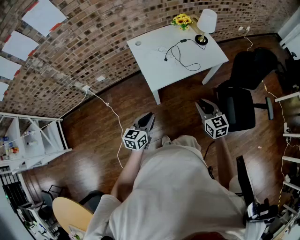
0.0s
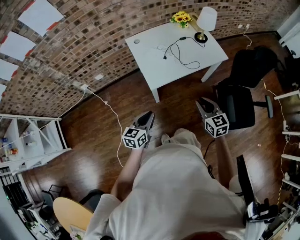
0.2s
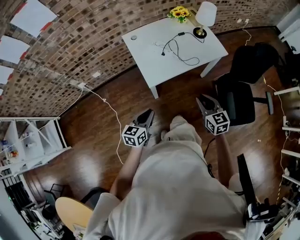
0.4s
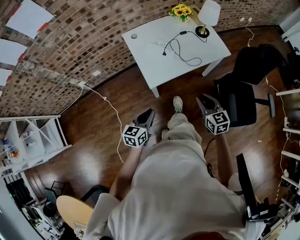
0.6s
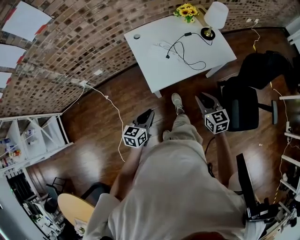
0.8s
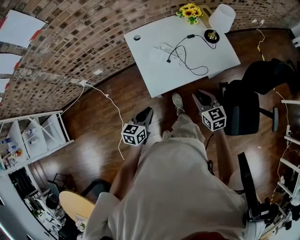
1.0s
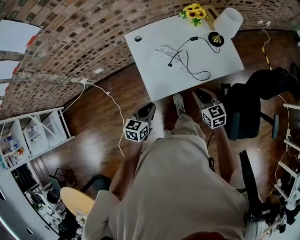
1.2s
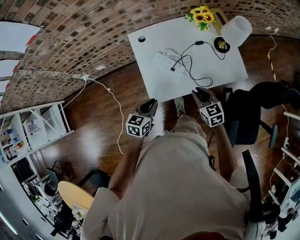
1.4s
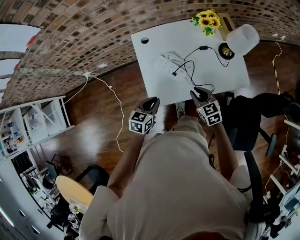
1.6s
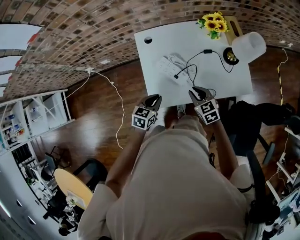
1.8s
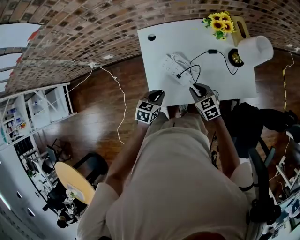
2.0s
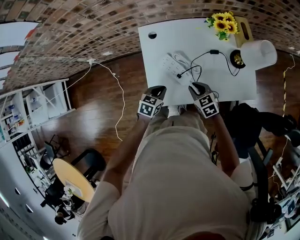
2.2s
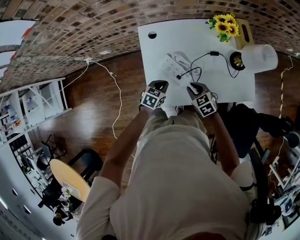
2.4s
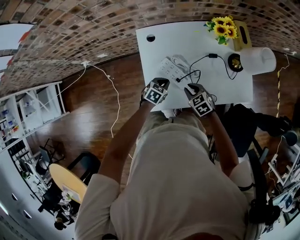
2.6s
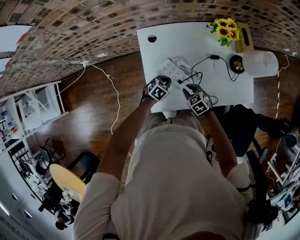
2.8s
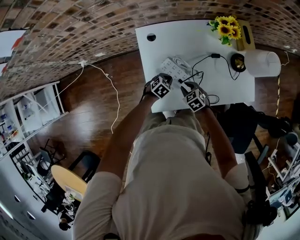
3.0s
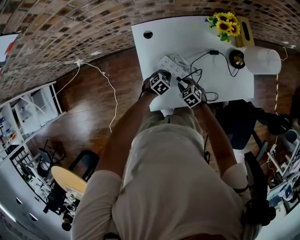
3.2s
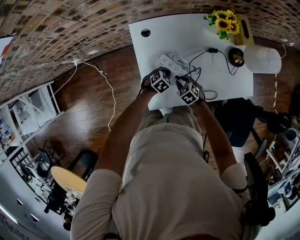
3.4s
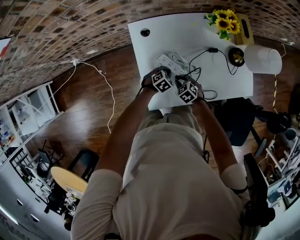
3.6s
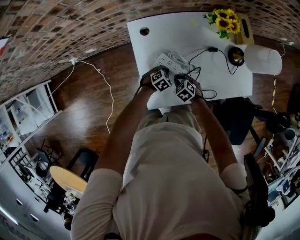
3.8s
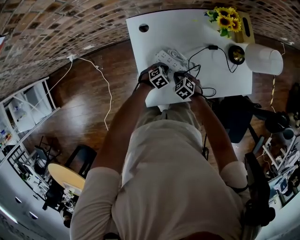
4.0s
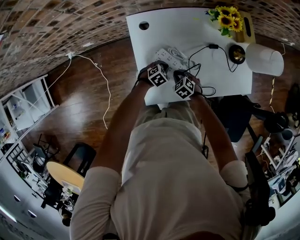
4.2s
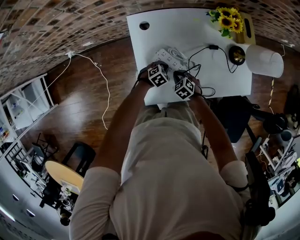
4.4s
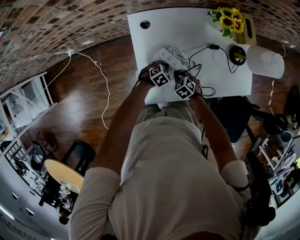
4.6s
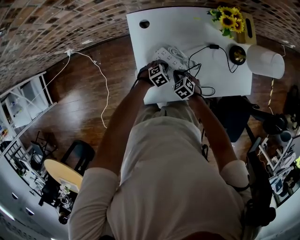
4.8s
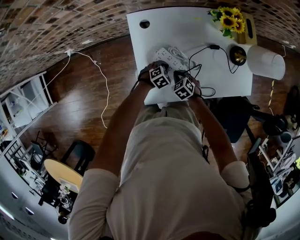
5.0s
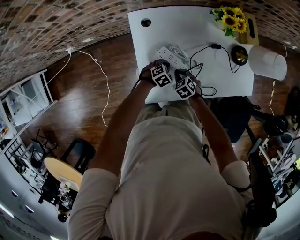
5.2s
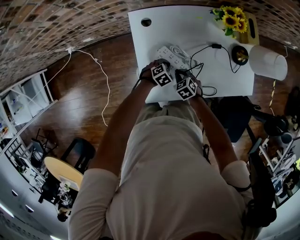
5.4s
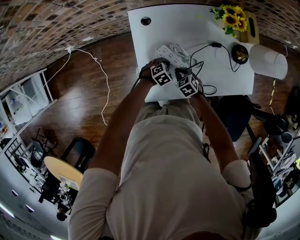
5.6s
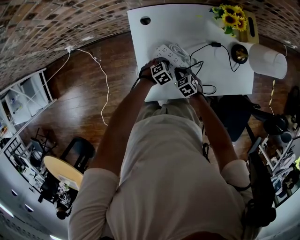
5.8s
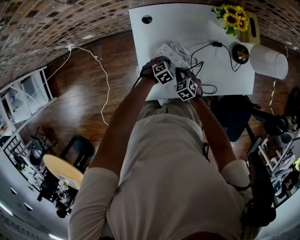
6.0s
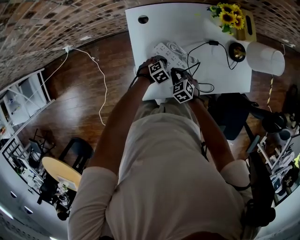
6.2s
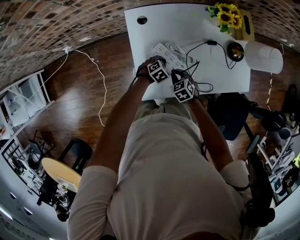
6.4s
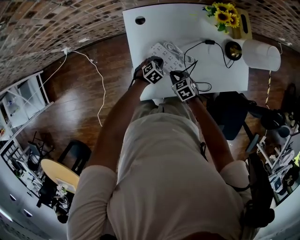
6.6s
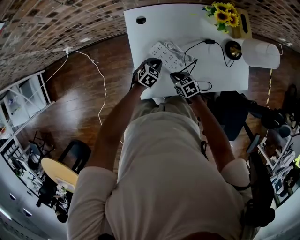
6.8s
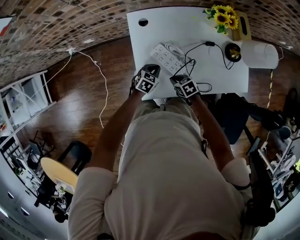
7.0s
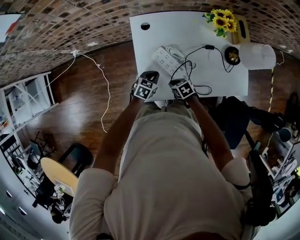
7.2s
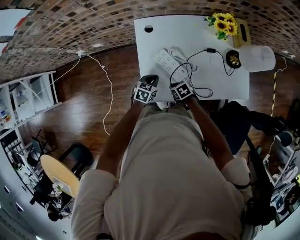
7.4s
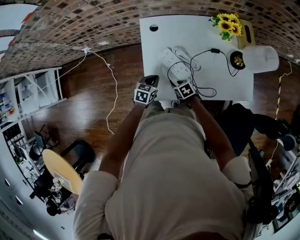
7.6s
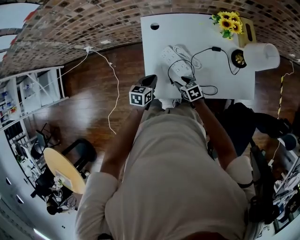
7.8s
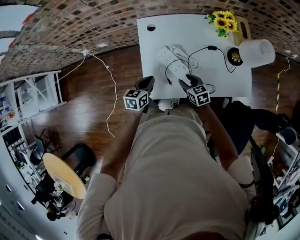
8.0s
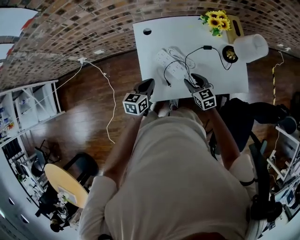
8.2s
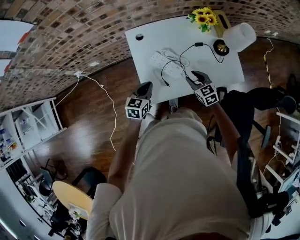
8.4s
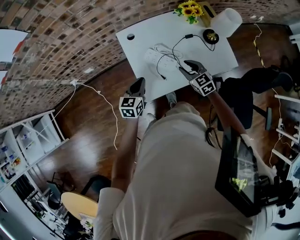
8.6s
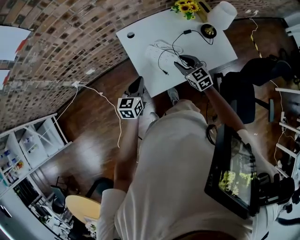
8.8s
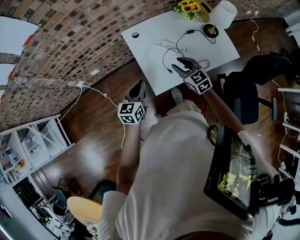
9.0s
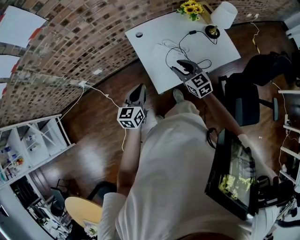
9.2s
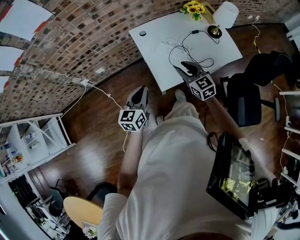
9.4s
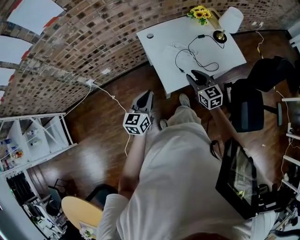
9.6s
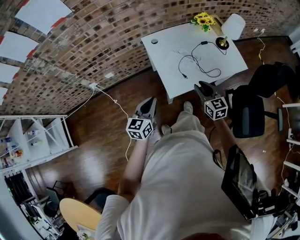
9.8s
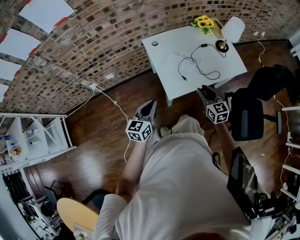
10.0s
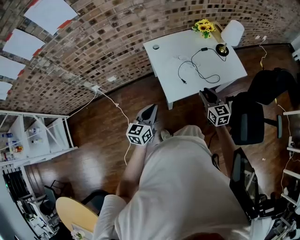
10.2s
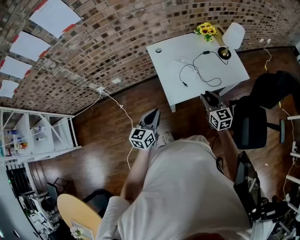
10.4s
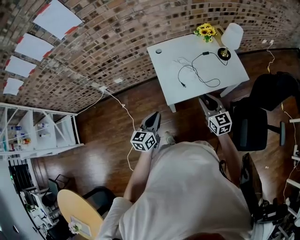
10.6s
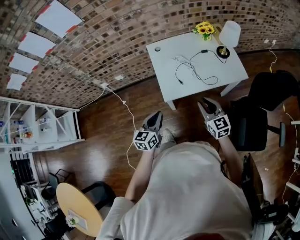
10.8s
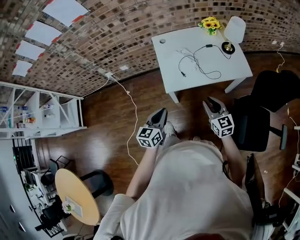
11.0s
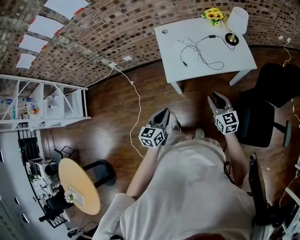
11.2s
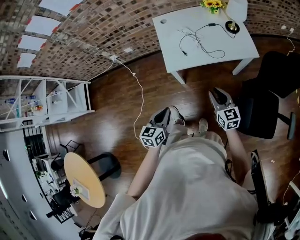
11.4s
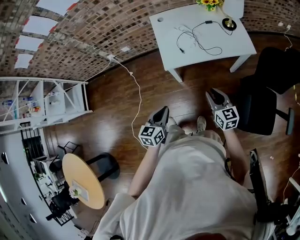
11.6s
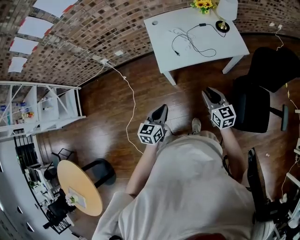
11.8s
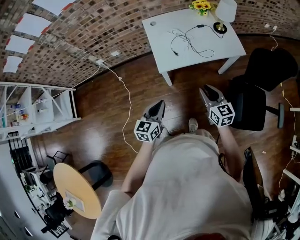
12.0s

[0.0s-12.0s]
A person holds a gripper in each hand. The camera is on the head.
0.0s to 1.6s: Both grippers move forward, about 35 cm. The right gripper turns by approximately 20 degrees.
1.6s to 3.0s: The right gripper heads downward, forward and to the left, covering approximately 20 cm, and turns by approximately 30 degrees. The left gripper shifts about 25 cm downward and forward, and rotates some 30 degrees.
3.0s to 4.4s: The left gripper changes place by approximately 5 cm, while the right gripper goes approximately 5 cm downward.
4.4s to 6.0s: The grippers move only a little.
6.0s to 7.6s: The left gripper travels upward by roughly 10 cm, and changes its angle by about 50 degrees; the right gripper moves some 10 cm, changes its angle by roughly 30 degrees, and opens.
7.6s to 9.0s: The grippers both shift upward by about 25 cm. The left gripper swivels approximately 30 degrees. Meanwhile the right gripper points its fingers roughly 30 degrees further upward.
9.0s to 10.4s: Both grippers move backward, some 15 cm.
10.4s to 12.0s: The right gripper moves backward, some 15 cm. Meanwhile the left gripper is displaced backward and to the right by approximately 20 cm.

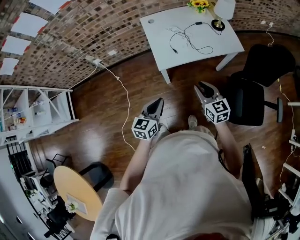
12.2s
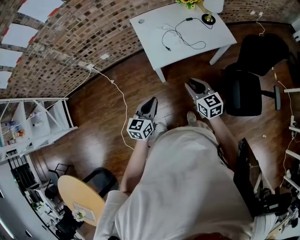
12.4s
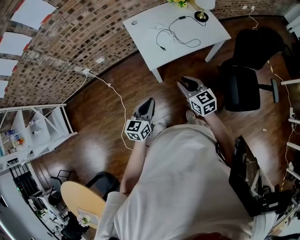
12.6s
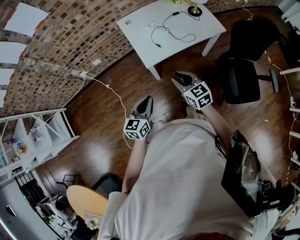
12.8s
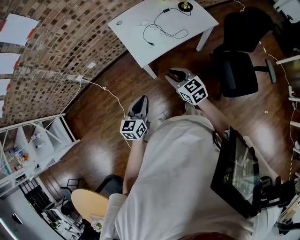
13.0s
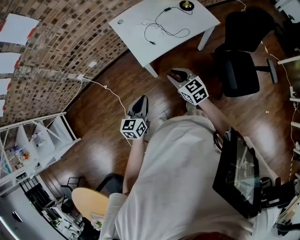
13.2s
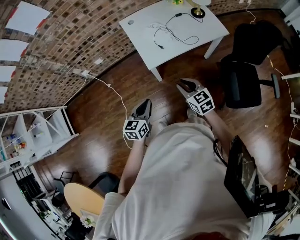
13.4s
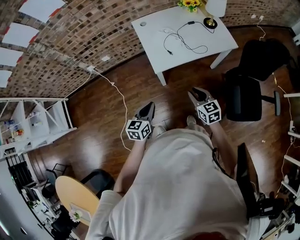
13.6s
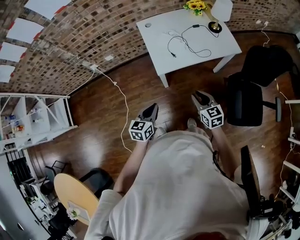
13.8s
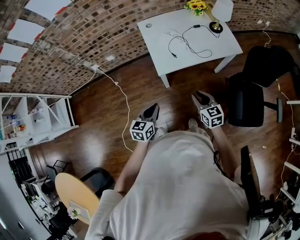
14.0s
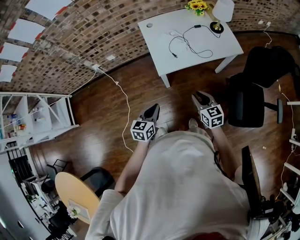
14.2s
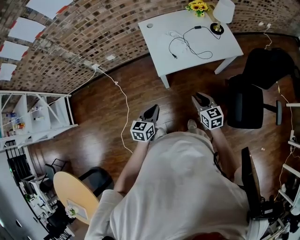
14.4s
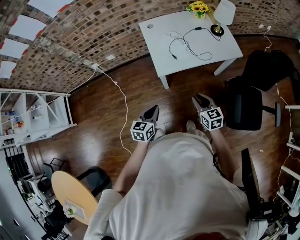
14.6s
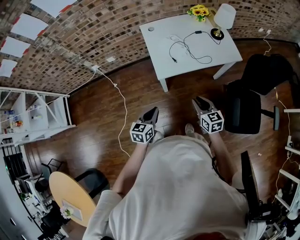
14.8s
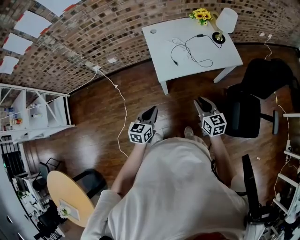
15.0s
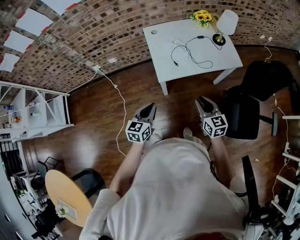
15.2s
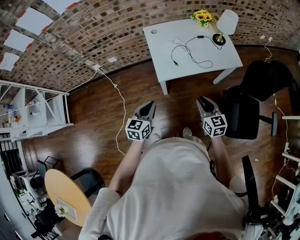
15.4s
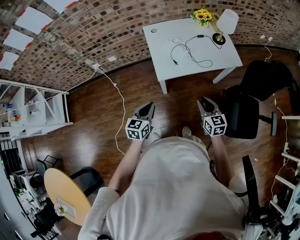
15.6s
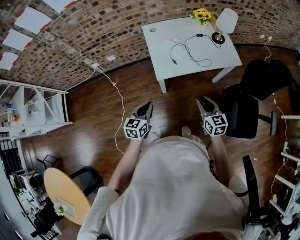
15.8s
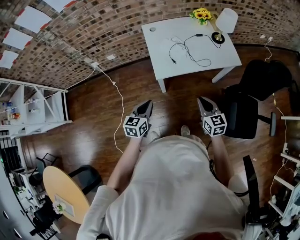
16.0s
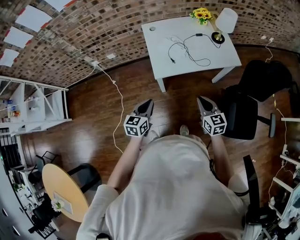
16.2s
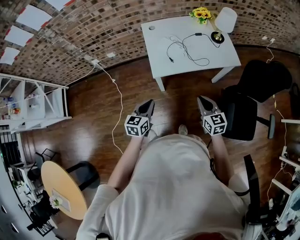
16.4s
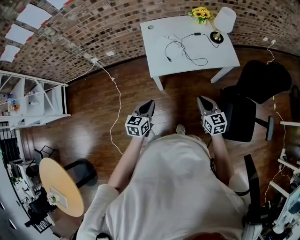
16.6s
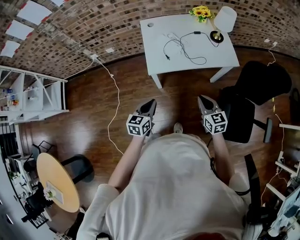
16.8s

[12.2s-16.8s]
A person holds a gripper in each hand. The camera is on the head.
12.2s to 13.8s: Both grippers move downward, roughly 5 cm.
13.8s to 15.2s: The left gripper ends up approximately 5 cm from where it was; the right gripper changes place by roughly 5 cm.
15.2s to 16.8s: Both grippers move to the right, approximately 10 cm.

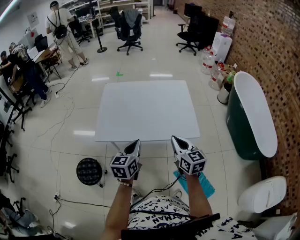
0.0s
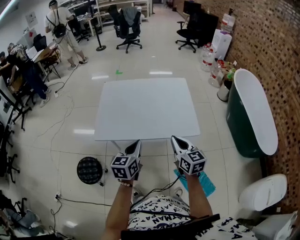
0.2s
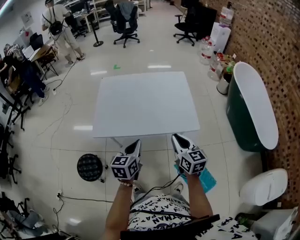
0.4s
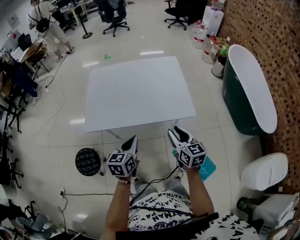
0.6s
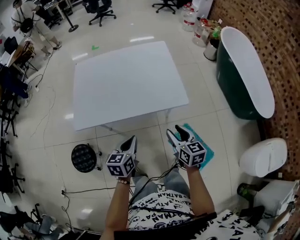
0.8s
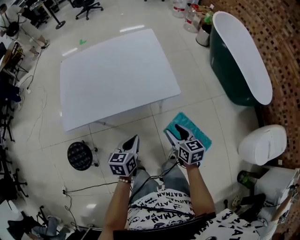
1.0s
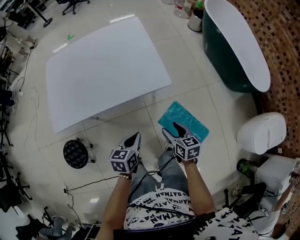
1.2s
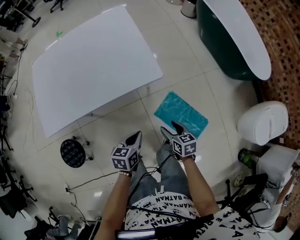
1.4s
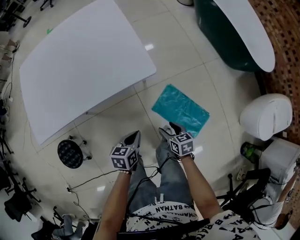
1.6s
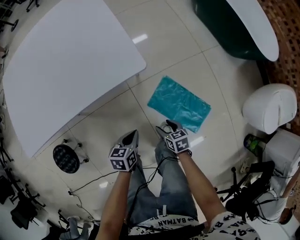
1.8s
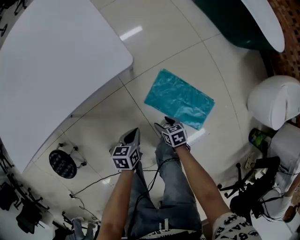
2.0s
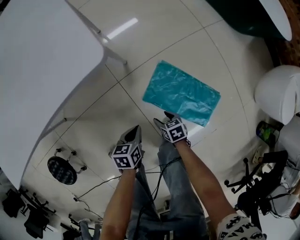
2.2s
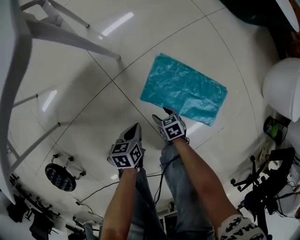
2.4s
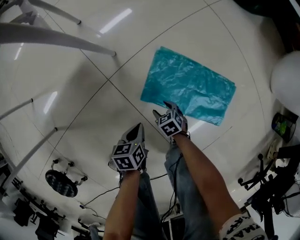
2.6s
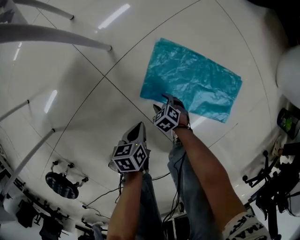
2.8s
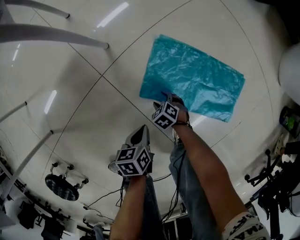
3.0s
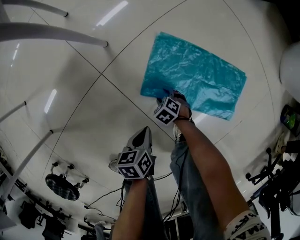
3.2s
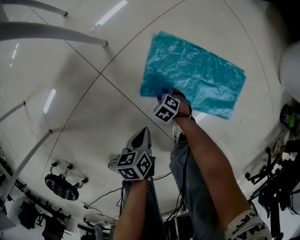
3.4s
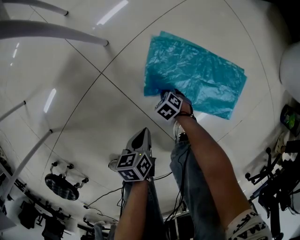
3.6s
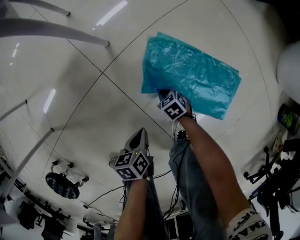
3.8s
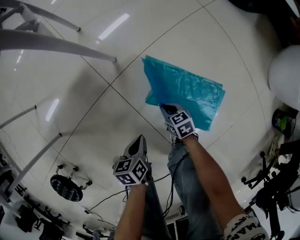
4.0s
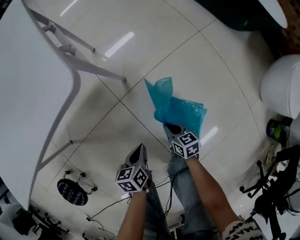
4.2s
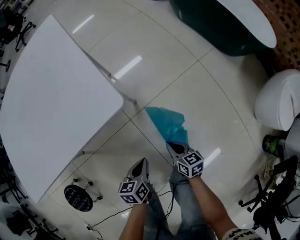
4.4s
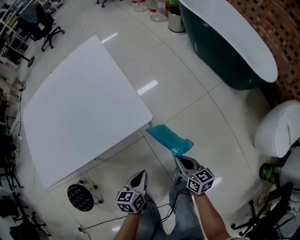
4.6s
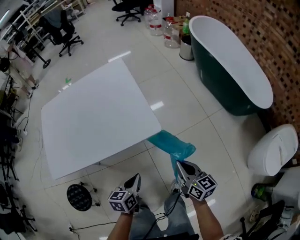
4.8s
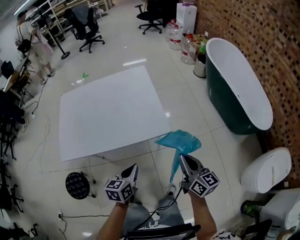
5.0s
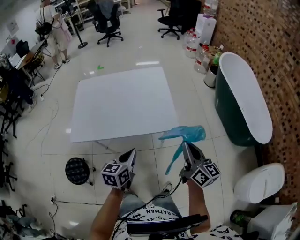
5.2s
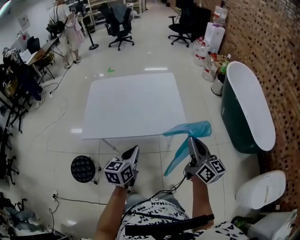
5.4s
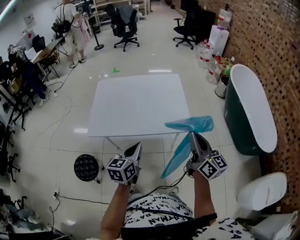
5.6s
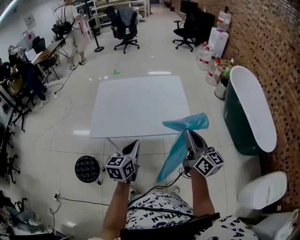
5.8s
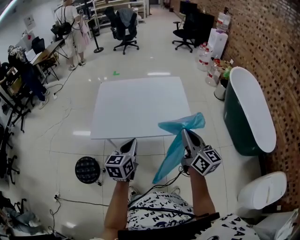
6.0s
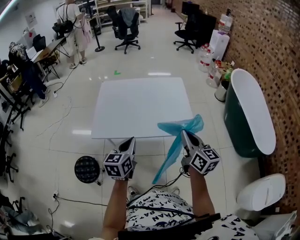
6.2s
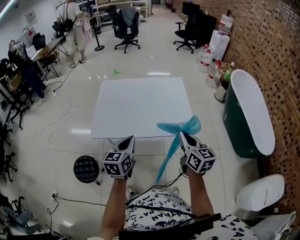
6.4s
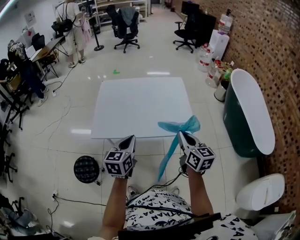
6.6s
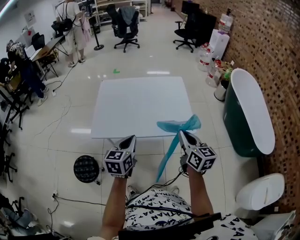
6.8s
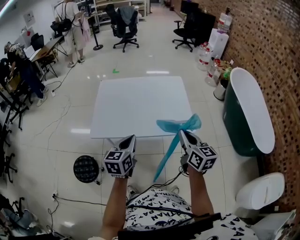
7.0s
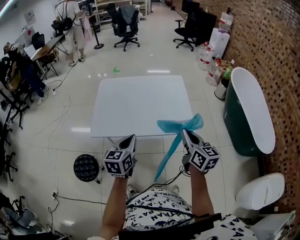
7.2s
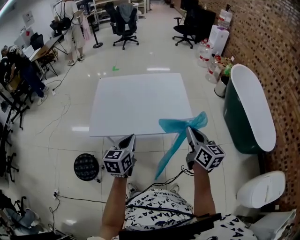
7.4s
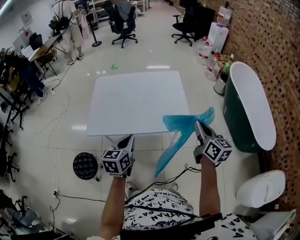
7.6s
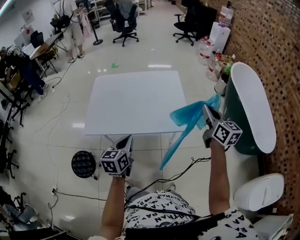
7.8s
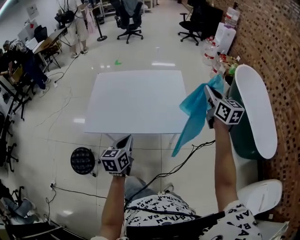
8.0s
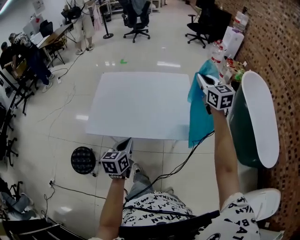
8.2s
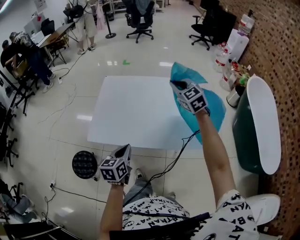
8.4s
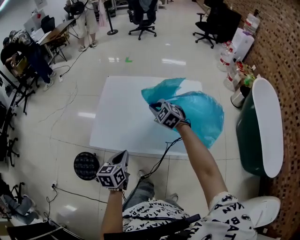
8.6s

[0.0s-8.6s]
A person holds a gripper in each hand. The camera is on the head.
0.0s to 1.4s: The grippers both shift downward and to the right by about 35 cm. The left gripper swivels roughly 40 degrees. The right gripper changes its angle by approximately 40 degrees, and opens its fingers.
1.4s to 2.8s: Both grippers travel together downward, roughly 60 cm. The right gripper swivels some 30 degrees, while the left gripper swivels some 20 degrees.
2.8s to 4.4s: The grippers both shift upward by roughly 35 cm. The right gripper tips its fingers upward by some 40 degrees, and closes its fingers.
4.4s to 5.8s: The right gripper heads upward, covering about 60 cm, and points its fingers approximately 40 degrees further upward; the left gripper goes approximately 60 cm upward and to the left, and swivels some 40 degrees.
5.8s to 7.2s: The right gripper ends up some 5 cm from where it was.
7.2s to 8.6s: The right gripper heads forward and to the left, covering approximately 35 cm, and twists some 60 degrees counterclockwise, seen from behind, while the left gripper goes roughly 15 cm downward, forward and to the left.
